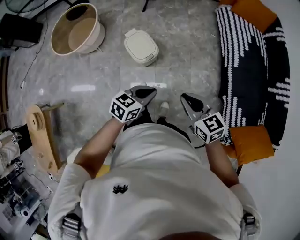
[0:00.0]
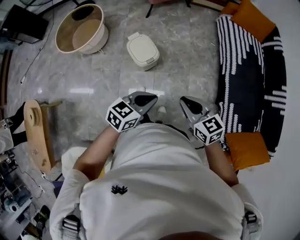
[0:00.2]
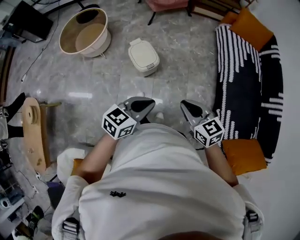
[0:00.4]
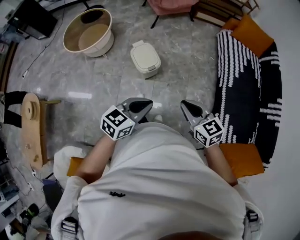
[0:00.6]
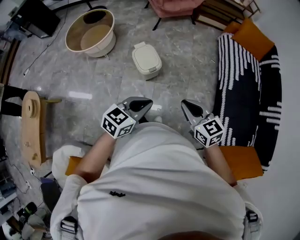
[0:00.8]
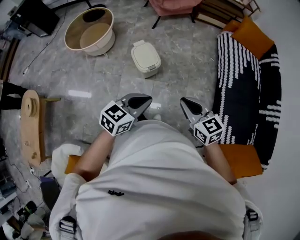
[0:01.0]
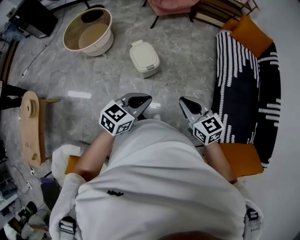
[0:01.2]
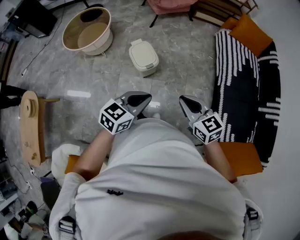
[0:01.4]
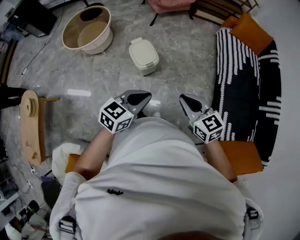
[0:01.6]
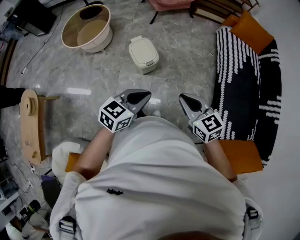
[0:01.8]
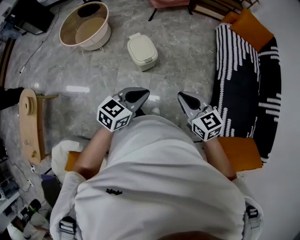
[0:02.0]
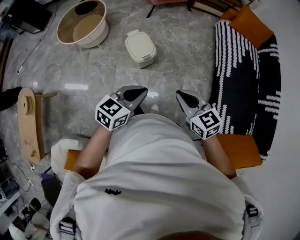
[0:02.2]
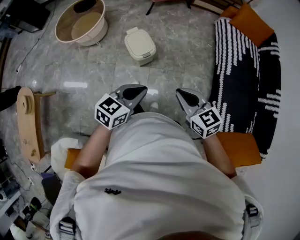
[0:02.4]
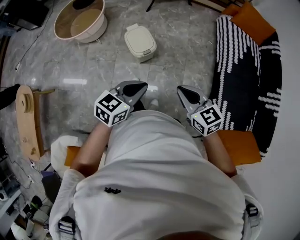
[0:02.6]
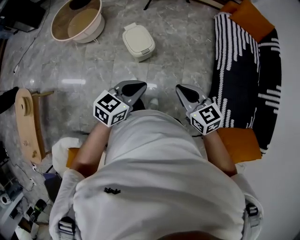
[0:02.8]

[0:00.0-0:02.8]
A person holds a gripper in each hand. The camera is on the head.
0:00.0 to 0:01.4: The right gripper travels upward by roughly 5 cm. The left gripper heads upward and backward, covering some 15 cm.
0:01.4 to 0:02.8: The grippers stay close to where they were, moving slightly.

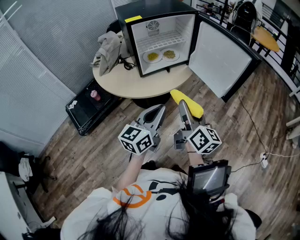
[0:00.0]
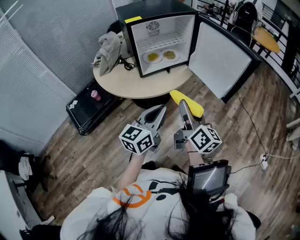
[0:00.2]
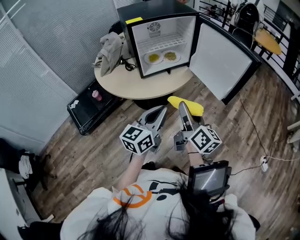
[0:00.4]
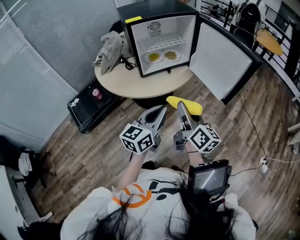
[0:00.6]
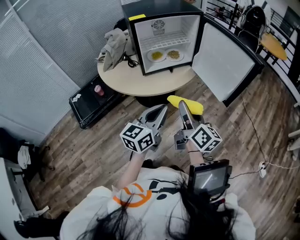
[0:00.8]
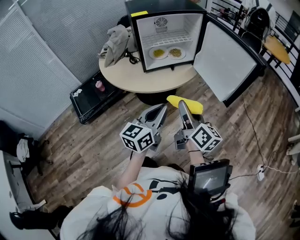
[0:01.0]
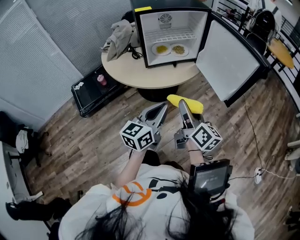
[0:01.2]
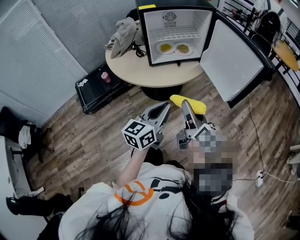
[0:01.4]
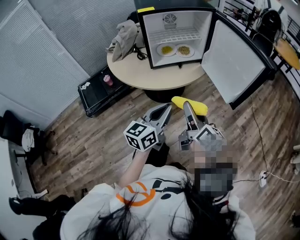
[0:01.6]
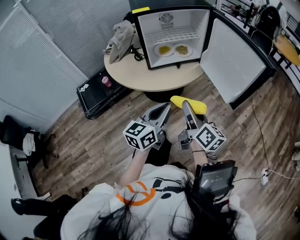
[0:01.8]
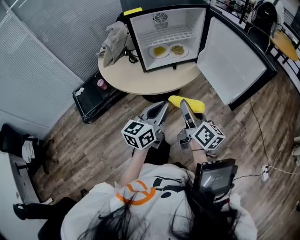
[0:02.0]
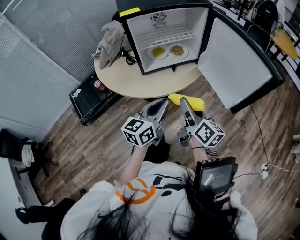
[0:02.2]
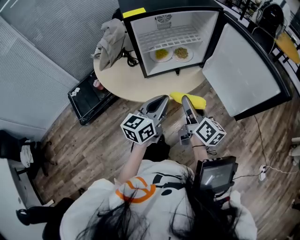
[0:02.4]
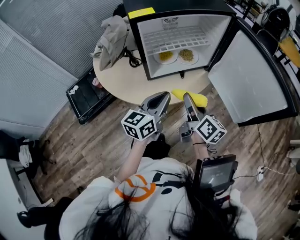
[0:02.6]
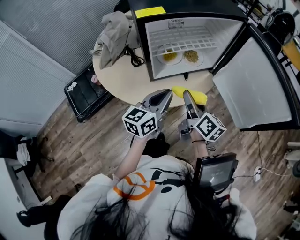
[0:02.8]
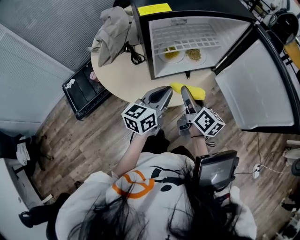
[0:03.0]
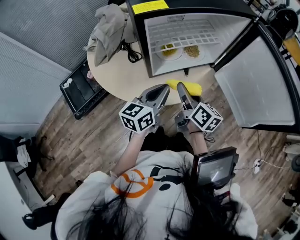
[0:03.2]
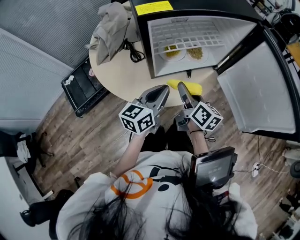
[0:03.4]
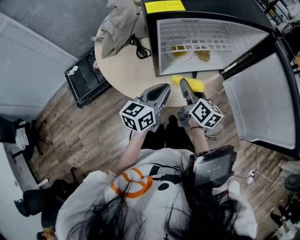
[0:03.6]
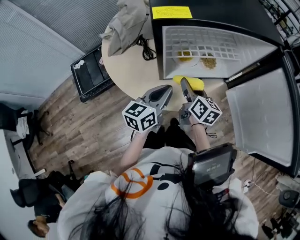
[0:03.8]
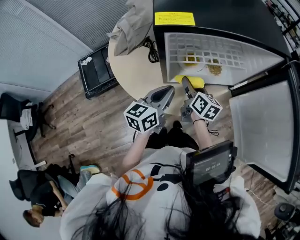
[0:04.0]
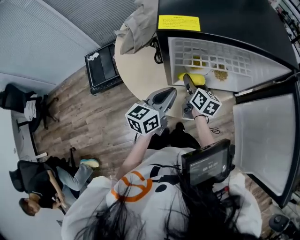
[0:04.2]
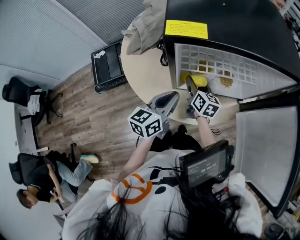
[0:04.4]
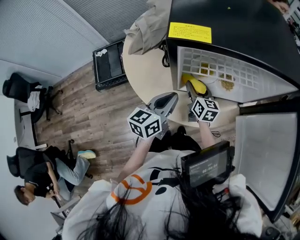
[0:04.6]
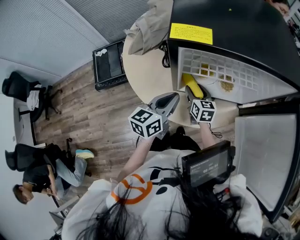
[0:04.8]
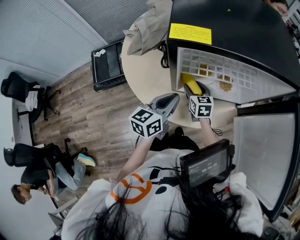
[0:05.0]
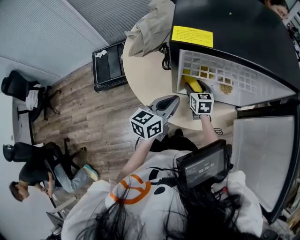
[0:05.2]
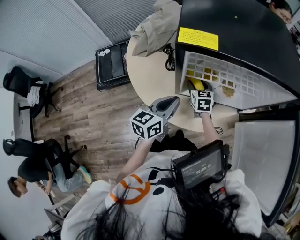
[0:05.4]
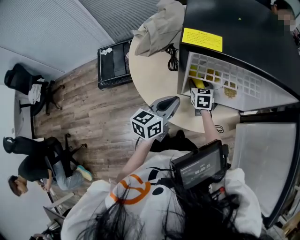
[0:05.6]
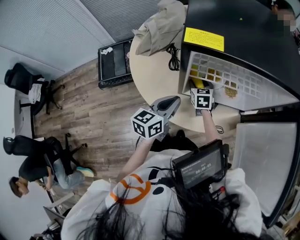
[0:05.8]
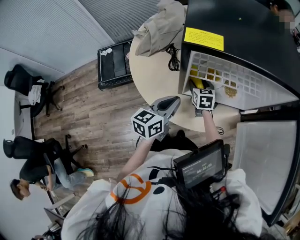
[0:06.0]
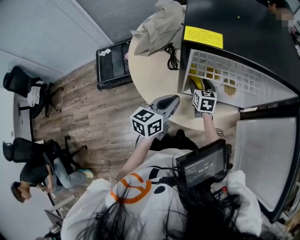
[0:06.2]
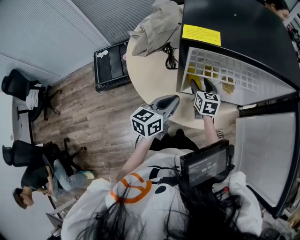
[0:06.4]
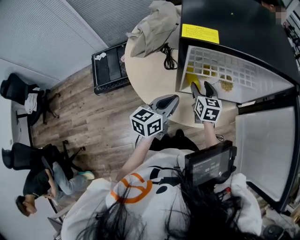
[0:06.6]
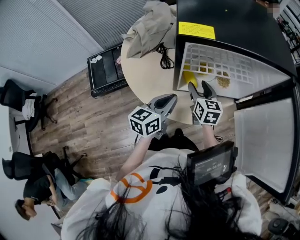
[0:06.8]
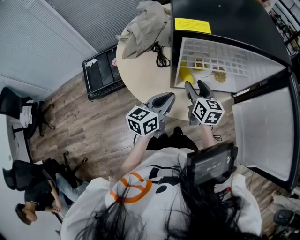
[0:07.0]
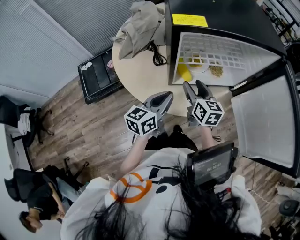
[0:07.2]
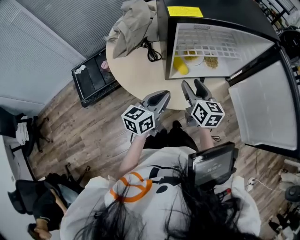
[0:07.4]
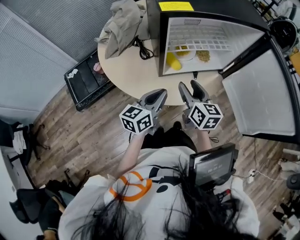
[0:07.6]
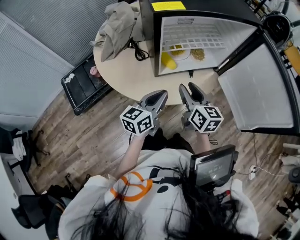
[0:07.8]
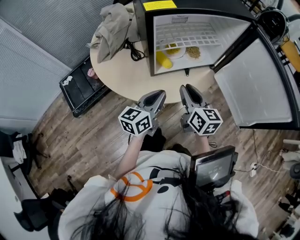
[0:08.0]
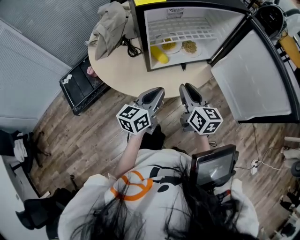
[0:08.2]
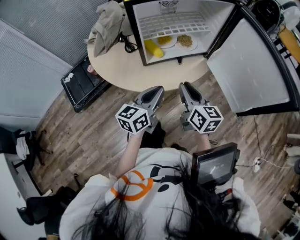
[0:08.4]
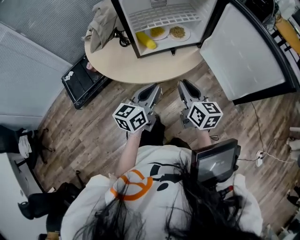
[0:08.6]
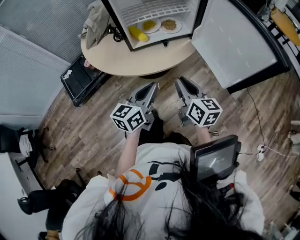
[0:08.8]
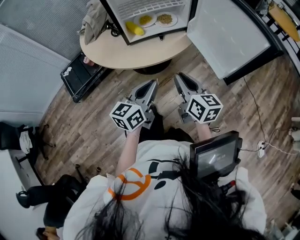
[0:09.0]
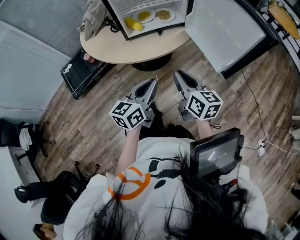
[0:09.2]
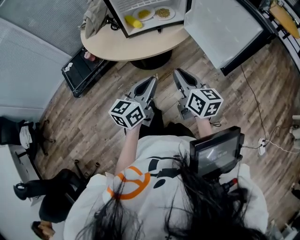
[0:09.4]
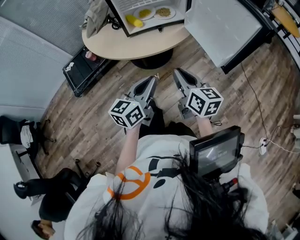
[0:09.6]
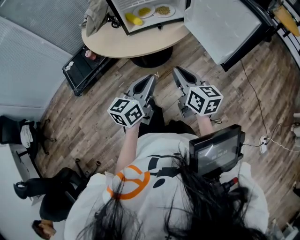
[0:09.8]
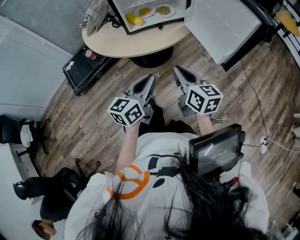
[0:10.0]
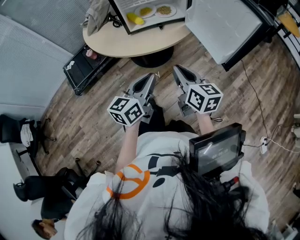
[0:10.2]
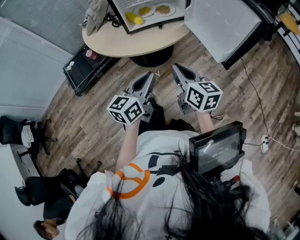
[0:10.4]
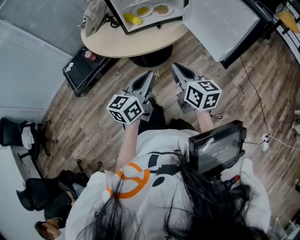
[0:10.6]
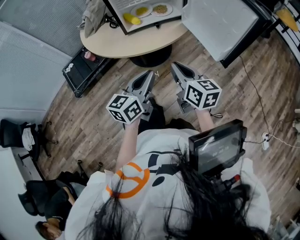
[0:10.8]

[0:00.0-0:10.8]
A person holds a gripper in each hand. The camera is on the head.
0:00.0 to 0:01.6: The right gripper ends up about 5 cm from where it was, while the left gripper moves about 5 cm.
0:01.6 to 0:03.0: The grippers both shift forward and to the left by about 30 cm.
0:03.0 to 0:04.6: The right gripper travels forward, downward and to the left by roughly 25 cm, and rotates roughly 30 degrees. The left gripper heads forward and to the left, covering about 10 cm, and changes its angle by some 20 degrees.
0:04.6 to 0:06.2: The right gripper swivels approximately 20 degrees.
0:06.2 to 0:07.8: The left gripper is displaced backward by approximately 10 cm, and turns by roughly 20 degrees; the right gripper goes approximately 25 cm backward and upward, and rotates roughly 30 degrees.
0:07.8 to 0:09.2: The two grippers go about 25 cm backward and to the right. The right gripper closes up.
0:09.2 to 0:10.8: There are only small adjustments of the grippers.

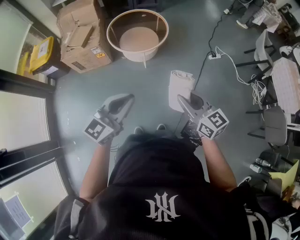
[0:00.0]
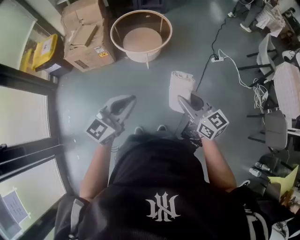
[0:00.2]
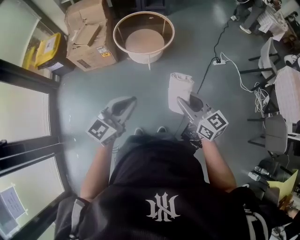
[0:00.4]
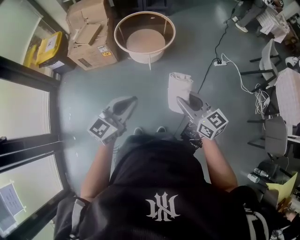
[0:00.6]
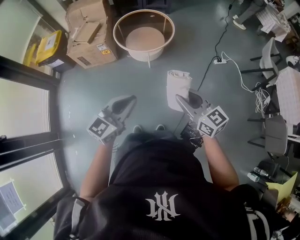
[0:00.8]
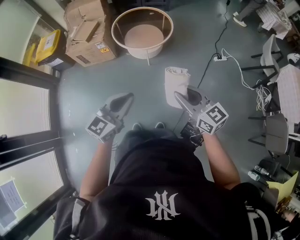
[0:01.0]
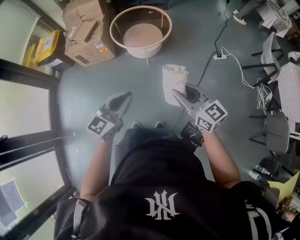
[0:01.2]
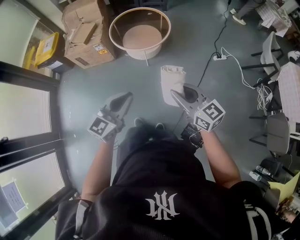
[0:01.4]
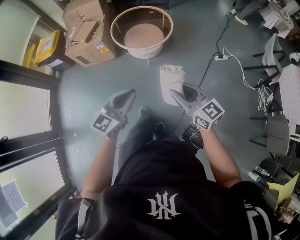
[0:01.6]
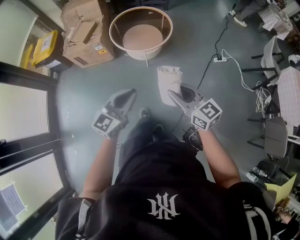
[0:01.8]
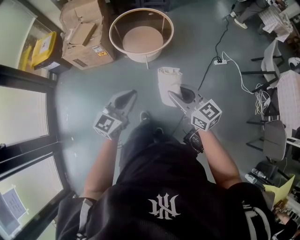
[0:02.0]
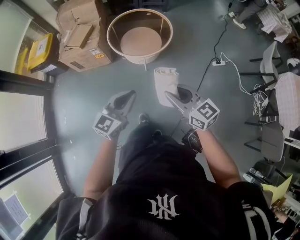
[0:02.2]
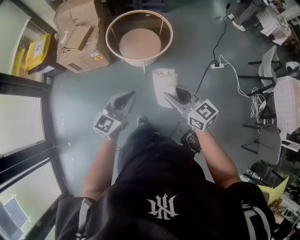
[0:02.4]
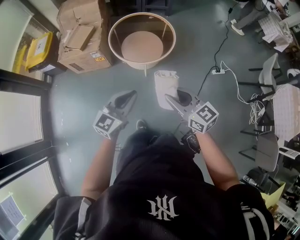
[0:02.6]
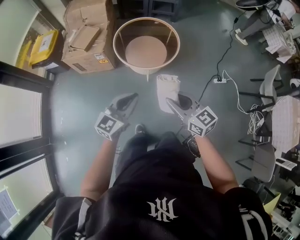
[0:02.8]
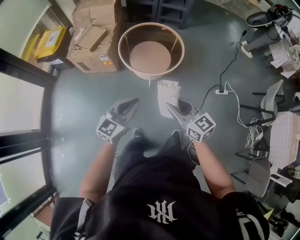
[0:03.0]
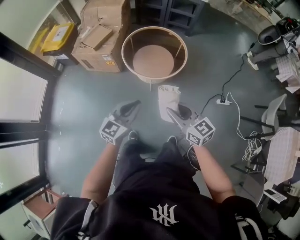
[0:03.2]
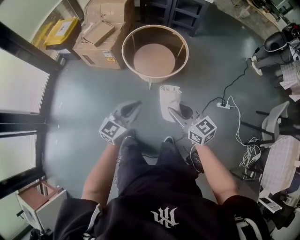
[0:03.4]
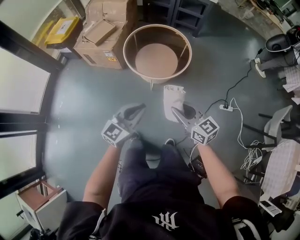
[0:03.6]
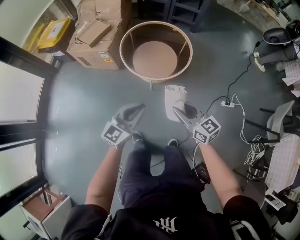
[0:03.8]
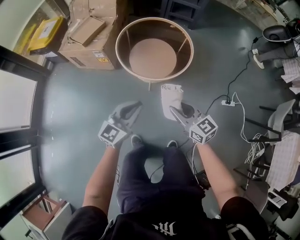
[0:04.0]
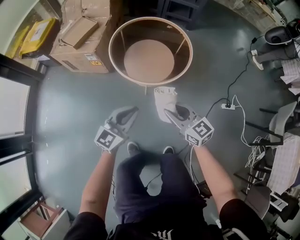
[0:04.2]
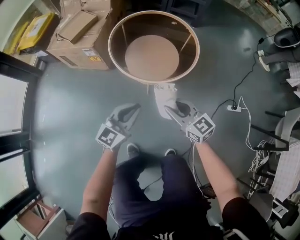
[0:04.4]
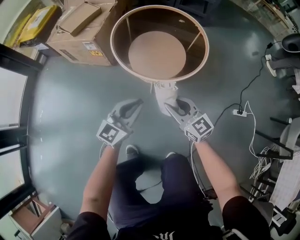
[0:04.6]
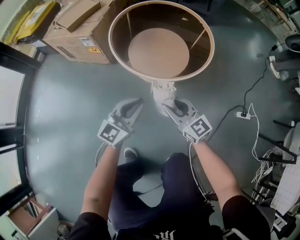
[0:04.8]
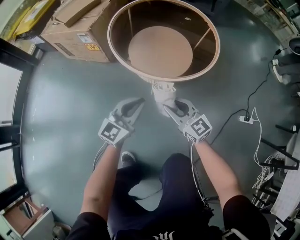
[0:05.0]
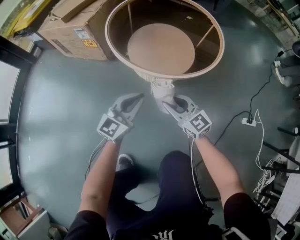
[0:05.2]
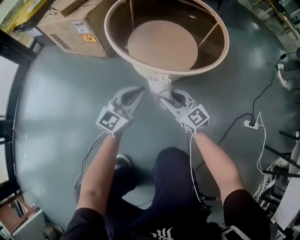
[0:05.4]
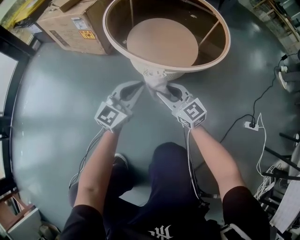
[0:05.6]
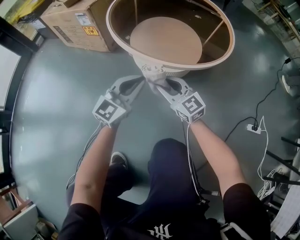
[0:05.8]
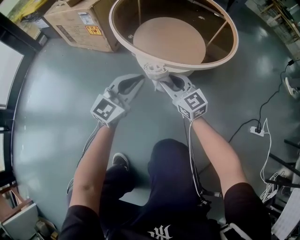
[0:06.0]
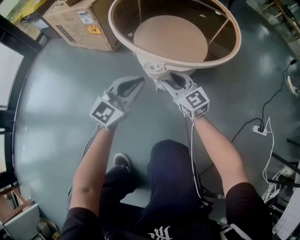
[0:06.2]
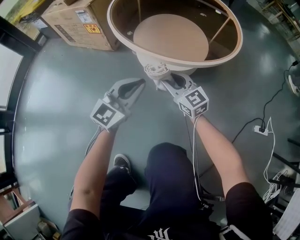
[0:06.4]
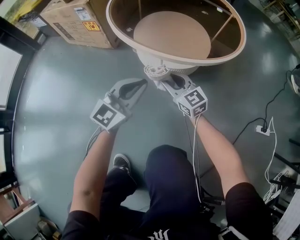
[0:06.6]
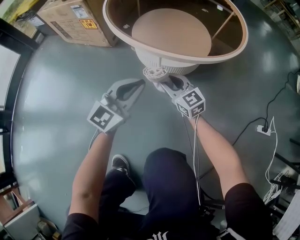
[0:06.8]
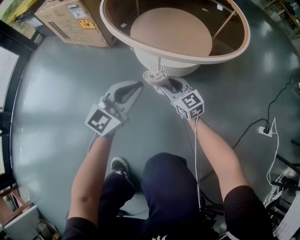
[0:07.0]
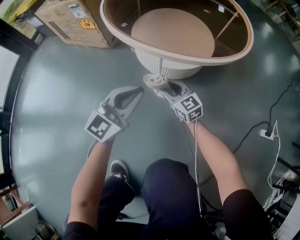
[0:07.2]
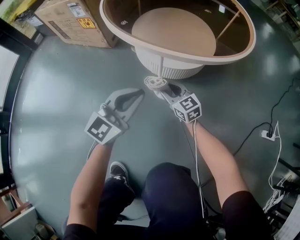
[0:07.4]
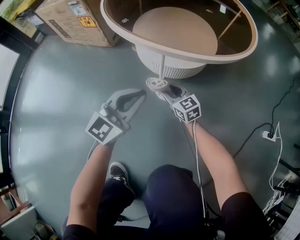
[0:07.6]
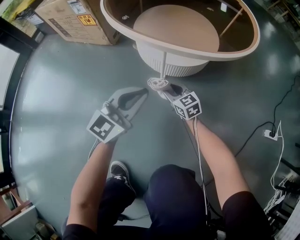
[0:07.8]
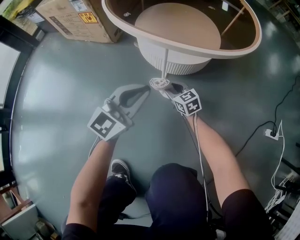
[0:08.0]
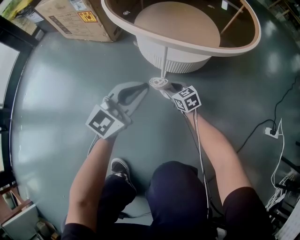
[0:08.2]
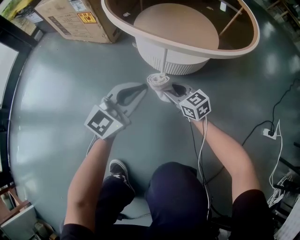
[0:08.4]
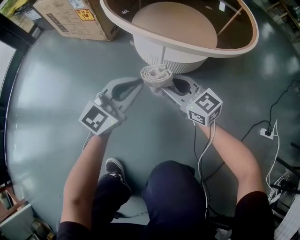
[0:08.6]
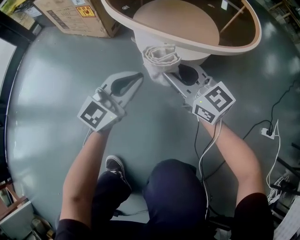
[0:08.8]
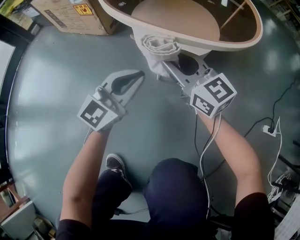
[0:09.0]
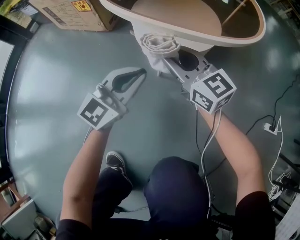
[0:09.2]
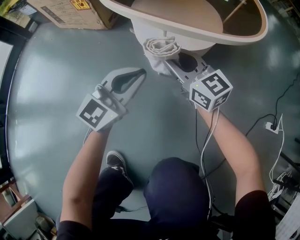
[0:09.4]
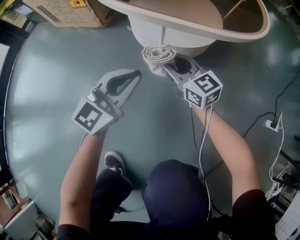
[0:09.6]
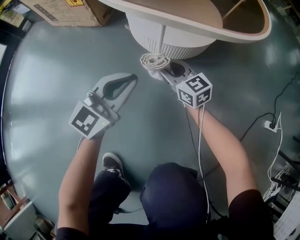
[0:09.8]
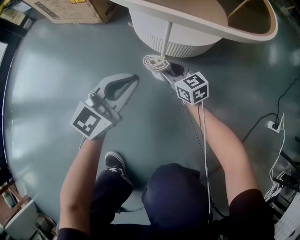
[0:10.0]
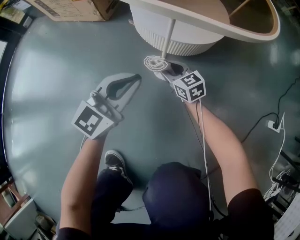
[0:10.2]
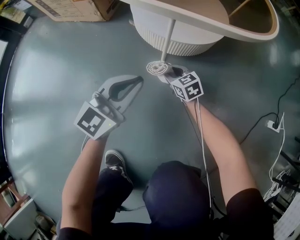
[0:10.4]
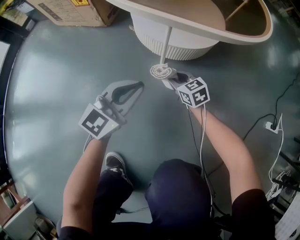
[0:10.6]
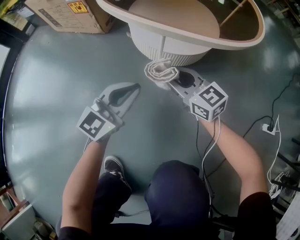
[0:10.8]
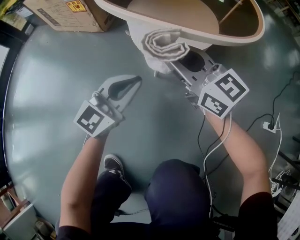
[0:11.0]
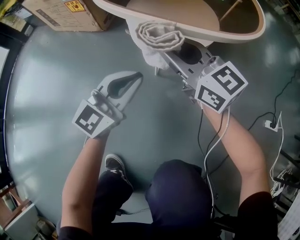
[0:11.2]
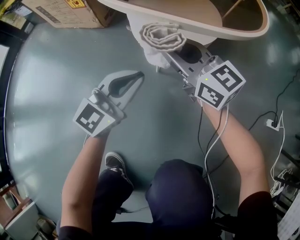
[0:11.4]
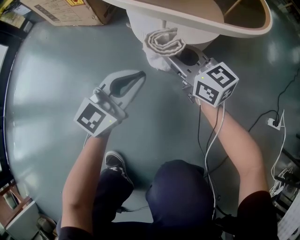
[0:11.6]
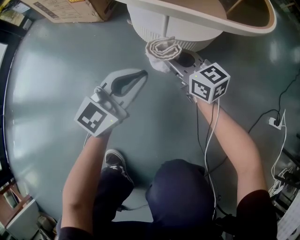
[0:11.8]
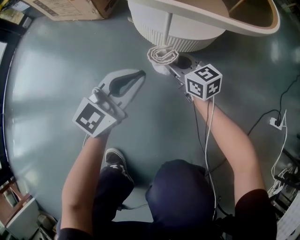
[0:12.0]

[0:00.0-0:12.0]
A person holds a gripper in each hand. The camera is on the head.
0:00.0 to 0:01.6: The left gripper goes approximately 5 cm to the right.
0:01.6 to 0:03.0: The grippers both shift forward by about 20 cm.
0:03.0 to 0:04.4: Both grippers move downward and forward, roughly 35 cm.
0:04.4 to 0:06.0: Both grippers travel together downward, some 30 cm.
0:06.0 to 0:07.6: The left gripper goes about 10 cm downward. Meanwhile the right gripper goes roughly 20 cm downward.
0:07.6 to 0:09.0: The right gripper is displaced upward by approximately 20 cm.
0:09.0 to 0:10.4: The left gripper moves downward, roughly 5 cm. Meanwhile the right gripper travels downward by about 30 cm, and tilts its fingers roughly 30 degrees downward.
0:10.4 to 0:12.0: The right gripper shifts some 10 cm upward.
